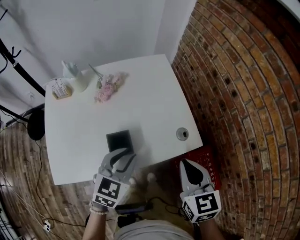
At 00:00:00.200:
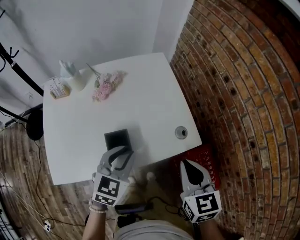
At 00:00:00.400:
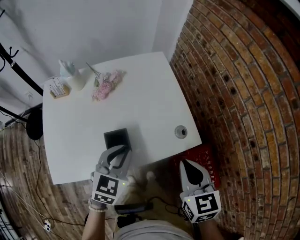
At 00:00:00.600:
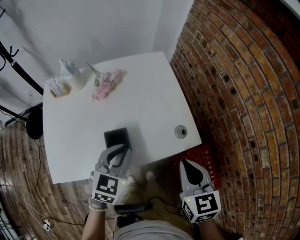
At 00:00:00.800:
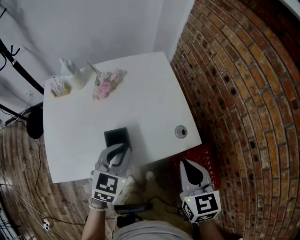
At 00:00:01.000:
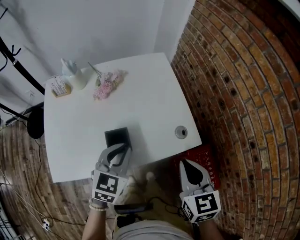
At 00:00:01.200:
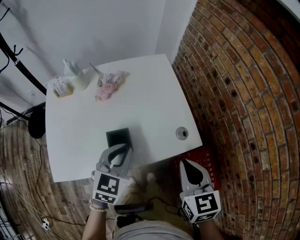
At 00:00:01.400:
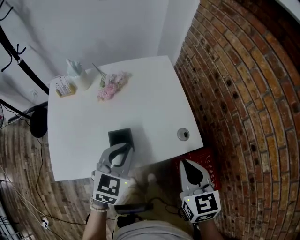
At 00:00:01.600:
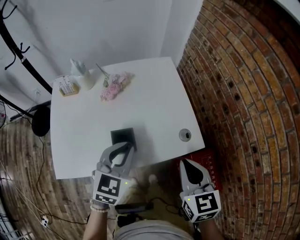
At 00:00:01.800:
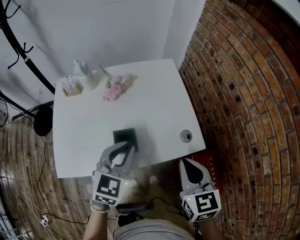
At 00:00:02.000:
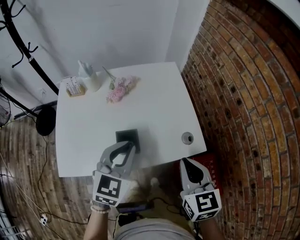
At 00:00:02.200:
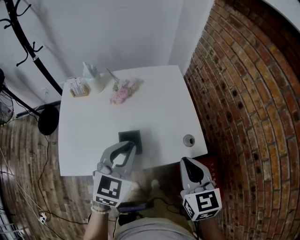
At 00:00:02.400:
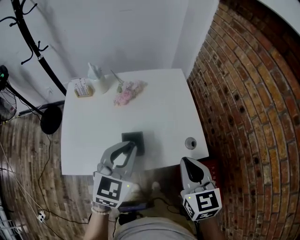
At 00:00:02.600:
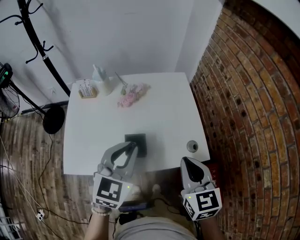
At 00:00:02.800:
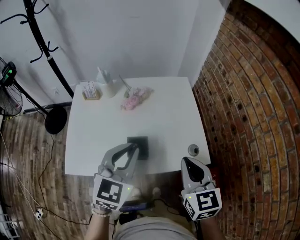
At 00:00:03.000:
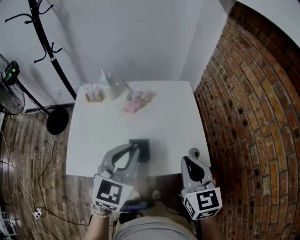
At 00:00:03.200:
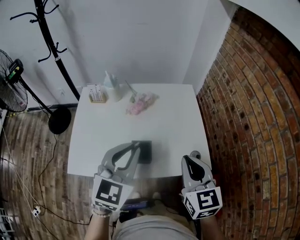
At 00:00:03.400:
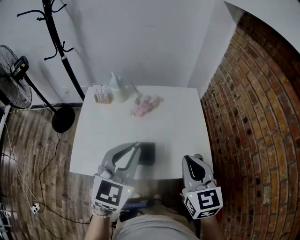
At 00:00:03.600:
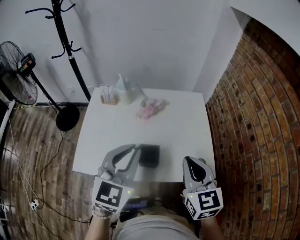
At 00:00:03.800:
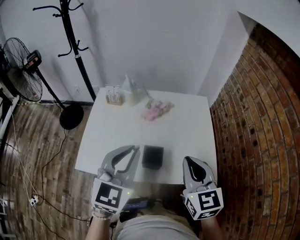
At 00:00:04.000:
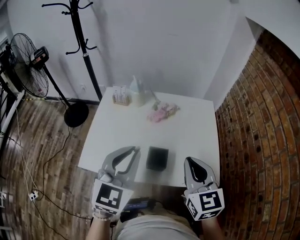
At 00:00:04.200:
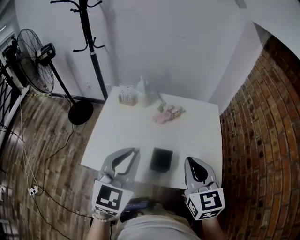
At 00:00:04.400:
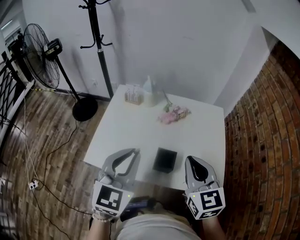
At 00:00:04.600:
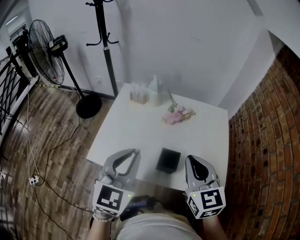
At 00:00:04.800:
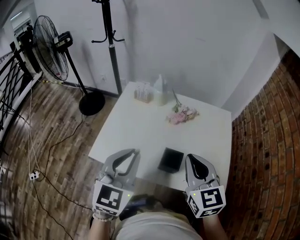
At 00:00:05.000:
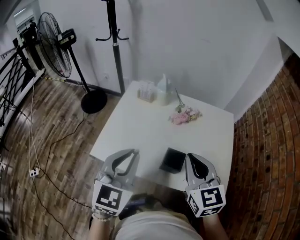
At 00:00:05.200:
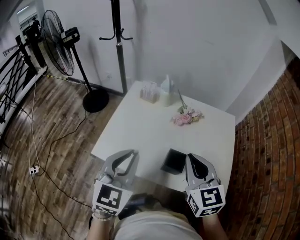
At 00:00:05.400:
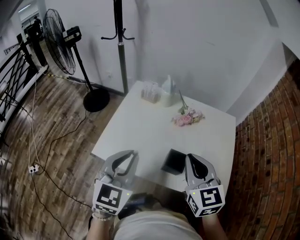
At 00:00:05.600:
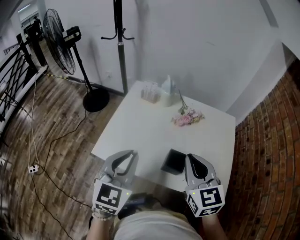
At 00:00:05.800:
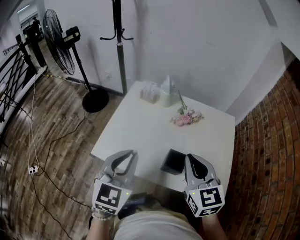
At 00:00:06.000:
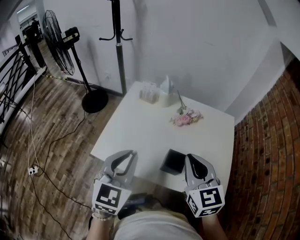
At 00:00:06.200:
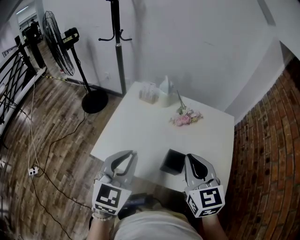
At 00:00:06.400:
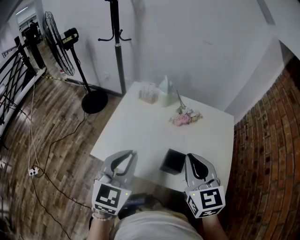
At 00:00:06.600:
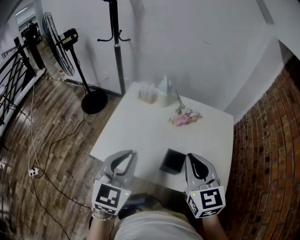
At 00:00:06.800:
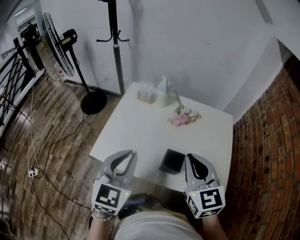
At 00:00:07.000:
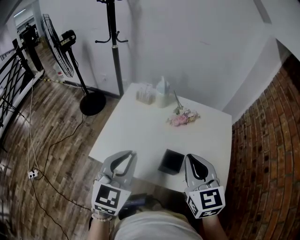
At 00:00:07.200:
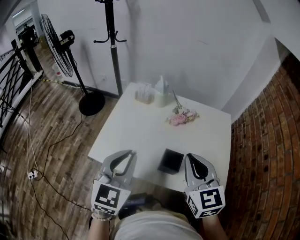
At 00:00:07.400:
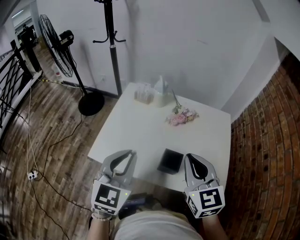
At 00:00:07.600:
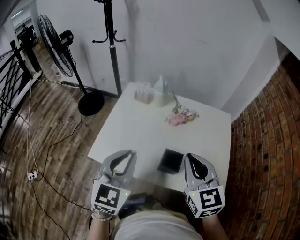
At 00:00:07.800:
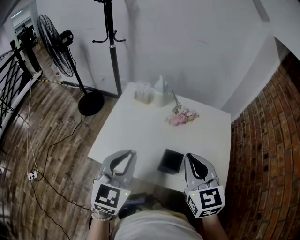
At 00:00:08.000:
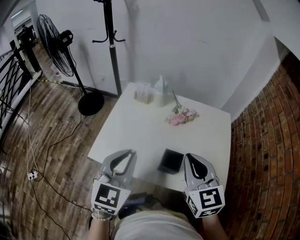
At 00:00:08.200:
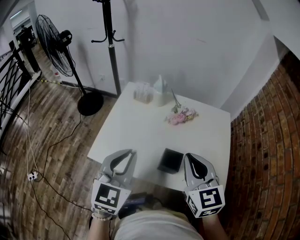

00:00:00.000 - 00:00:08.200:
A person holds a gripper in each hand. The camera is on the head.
00:00:00.000 - 00:00:01.600: The grippers make only small movements.
00:00:01.600 - 00:00:03.200: The left gripper moves upward, some 10 cm. Meanwhile the right gripper is displaced upward by approximately 5 cm.
00:00:03.200 - 00:00:05.000: The left gripper travels to the left by about 15 cm, and changes its angle by approximately 20 degrees. Meanwhile the right gripper goes about 15 cm to the left and forward, and rotates some 20 degrees.
00:00:05.000 - 00:00:06.600: The grippers make only small movements.
00:00:06.600 - 00:00:08.200: Neither gripper changes place.

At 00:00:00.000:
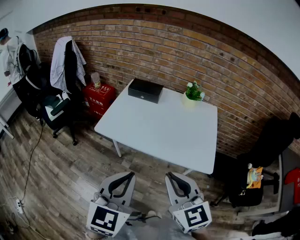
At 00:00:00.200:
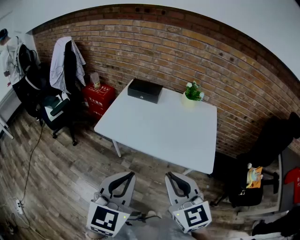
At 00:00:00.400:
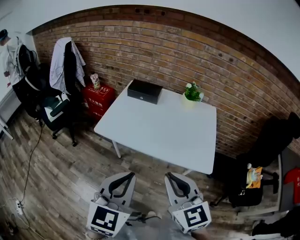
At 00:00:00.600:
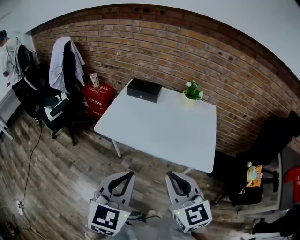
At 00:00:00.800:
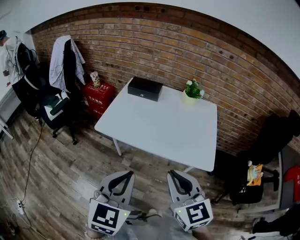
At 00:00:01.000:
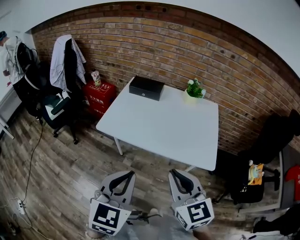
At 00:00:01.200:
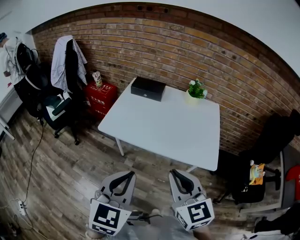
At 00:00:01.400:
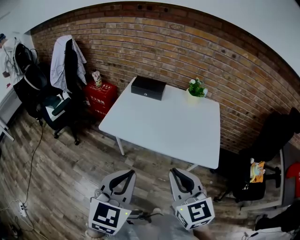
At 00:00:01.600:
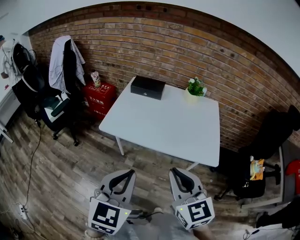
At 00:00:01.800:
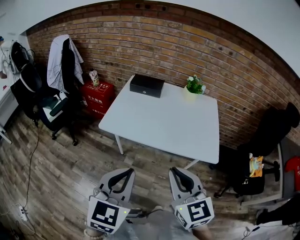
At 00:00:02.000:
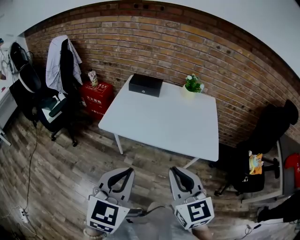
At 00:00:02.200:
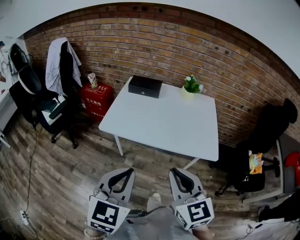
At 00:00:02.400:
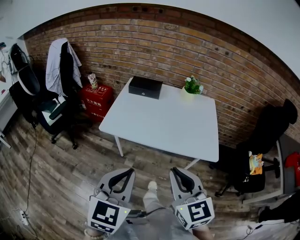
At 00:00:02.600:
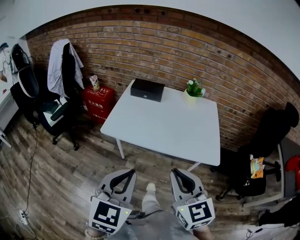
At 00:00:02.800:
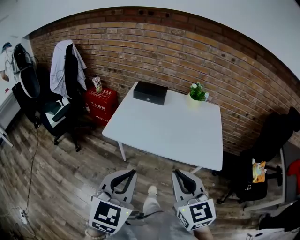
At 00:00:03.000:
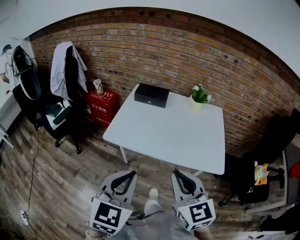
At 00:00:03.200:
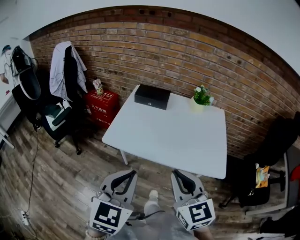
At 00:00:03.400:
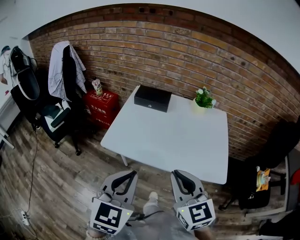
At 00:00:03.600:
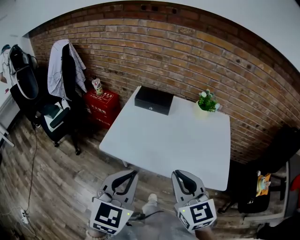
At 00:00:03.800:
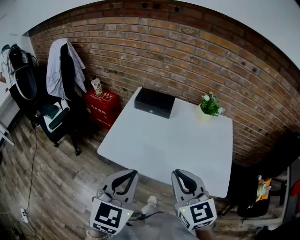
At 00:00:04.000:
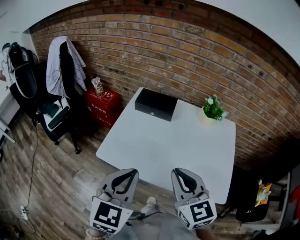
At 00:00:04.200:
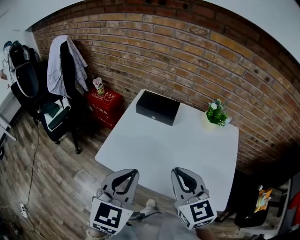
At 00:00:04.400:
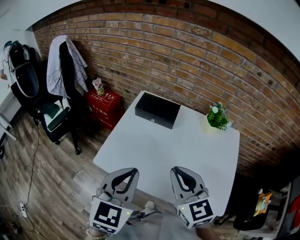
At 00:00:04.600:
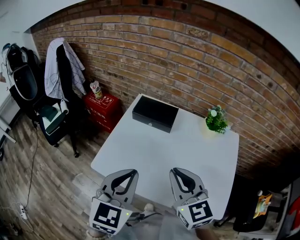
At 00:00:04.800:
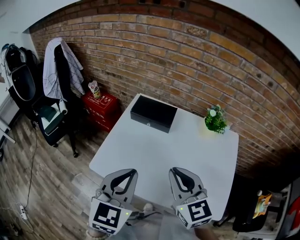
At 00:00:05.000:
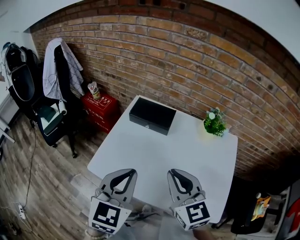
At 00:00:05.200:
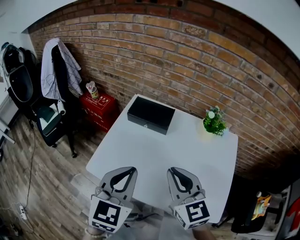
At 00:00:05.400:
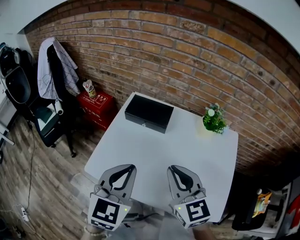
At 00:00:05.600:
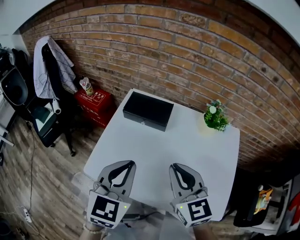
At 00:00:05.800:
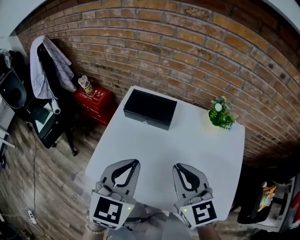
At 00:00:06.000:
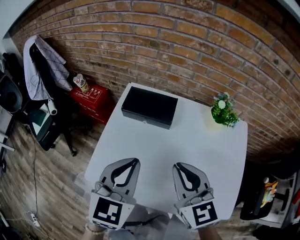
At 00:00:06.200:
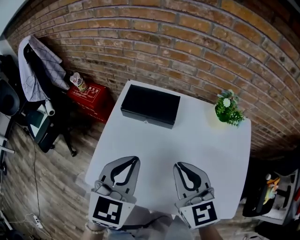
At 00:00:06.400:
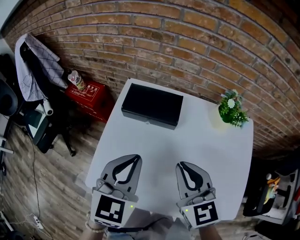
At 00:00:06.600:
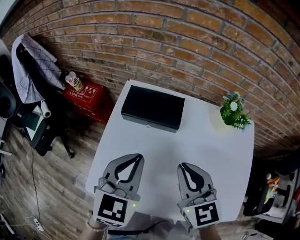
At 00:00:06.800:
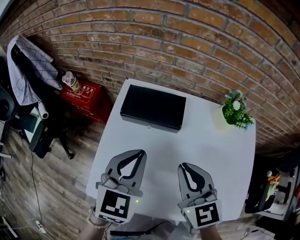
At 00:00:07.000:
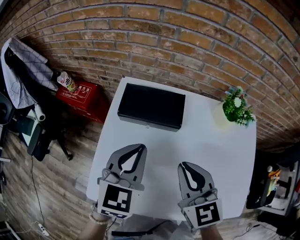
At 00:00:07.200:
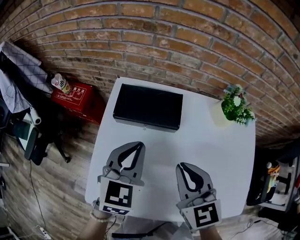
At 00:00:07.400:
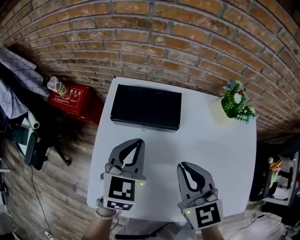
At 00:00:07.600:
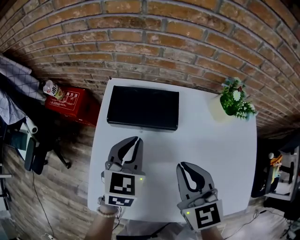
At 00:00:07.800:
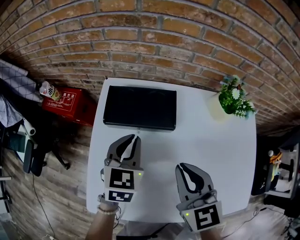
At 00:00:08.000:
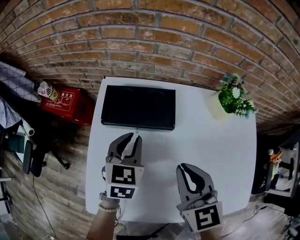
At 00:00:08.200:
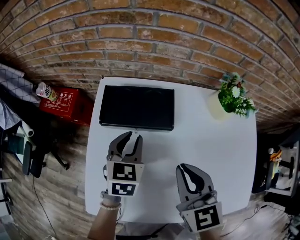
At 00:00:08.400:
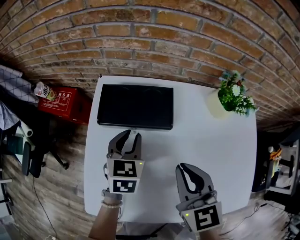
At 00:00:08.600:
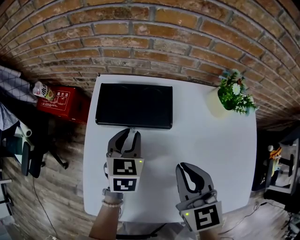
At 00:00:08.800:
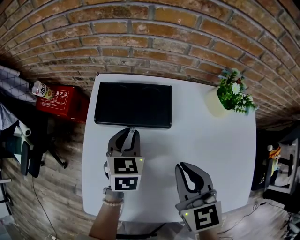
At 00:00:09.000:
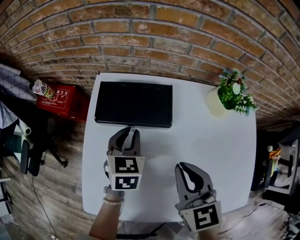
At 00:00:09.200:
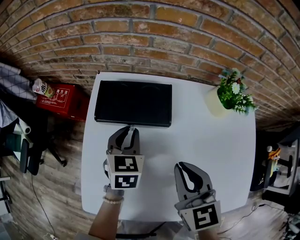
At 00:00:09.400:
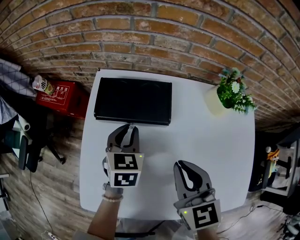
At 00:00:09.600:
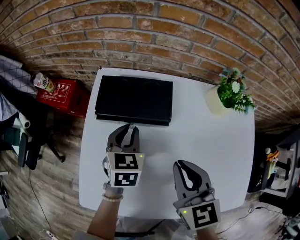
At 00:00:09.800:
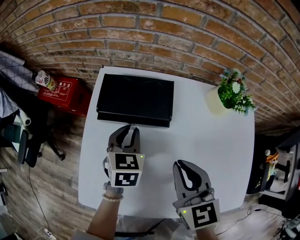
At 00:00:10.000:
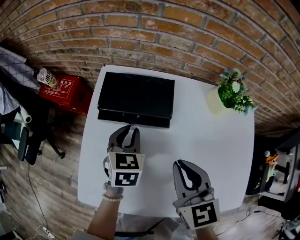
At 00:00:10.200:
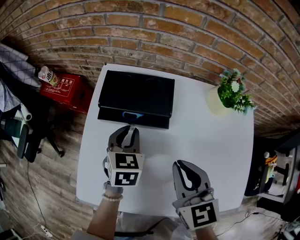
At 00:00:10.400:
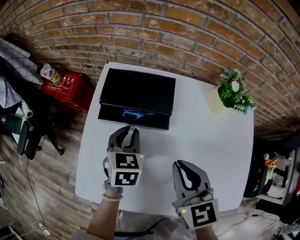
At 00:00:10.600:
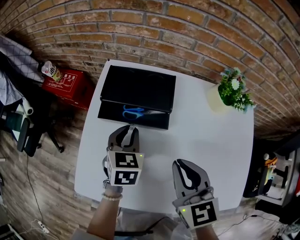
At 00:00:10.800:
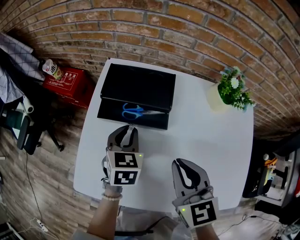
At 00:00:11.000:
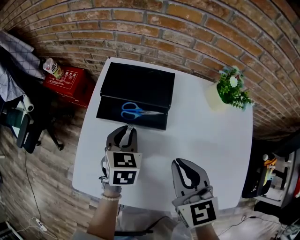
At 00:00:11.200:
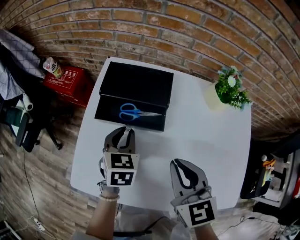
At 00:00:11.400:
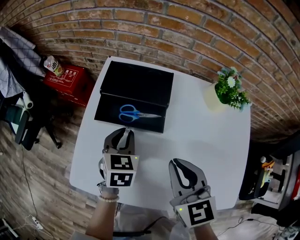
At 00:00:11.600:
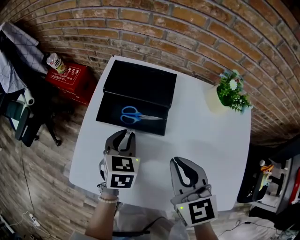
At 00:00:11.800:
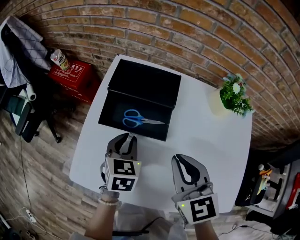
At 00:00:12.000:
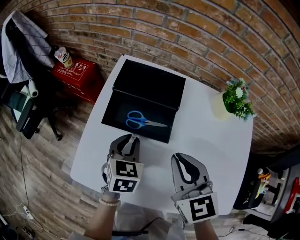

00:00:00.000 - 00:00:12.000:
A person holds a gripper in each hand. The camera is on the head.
00:00:00.000 - 00:00:01.600: The left gripper goes some 5 cm to the left.
00:00:01.600 - 00:00:03.000: The grippers stay close to where they were, moving slightly.
00:00:03.000 - 00:00:04.400: Both grippers travel together forward, about 30 cm.
00:00:04.400 - 00:00:06.000: Both grippers move forward, some 15 cm.
00:00:06.000 - 00:00:07.600: The left gripper goes roughly 25 cm forward and downward. The right gripper goes about 15 cm forward and downward.
00:00:07.600 - 00:00:09.000: The left gripper is displaced downward by some 10 cm.
00:00:09.000 - 00:00:10.400: The left gripper is displaced backward by roughly 5 cm.
00:00:10.400 - 00:00:12.000: The left gripper travels backward by about 10 cm.

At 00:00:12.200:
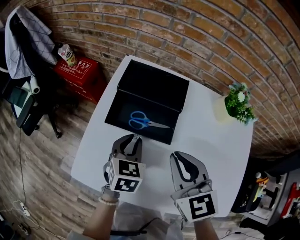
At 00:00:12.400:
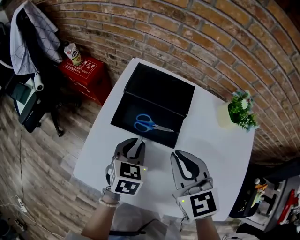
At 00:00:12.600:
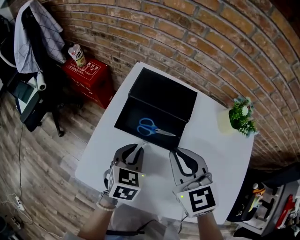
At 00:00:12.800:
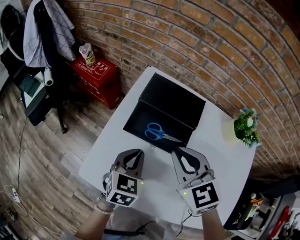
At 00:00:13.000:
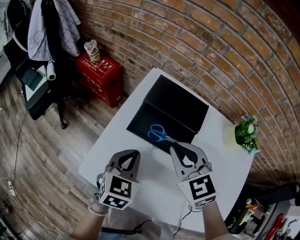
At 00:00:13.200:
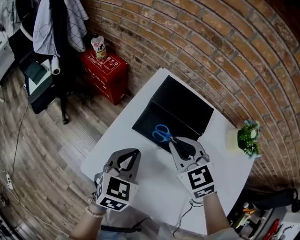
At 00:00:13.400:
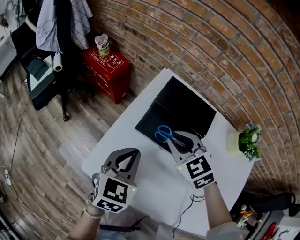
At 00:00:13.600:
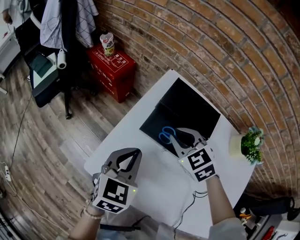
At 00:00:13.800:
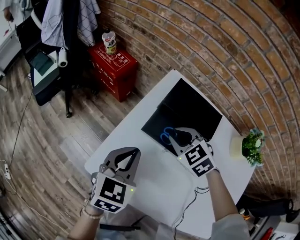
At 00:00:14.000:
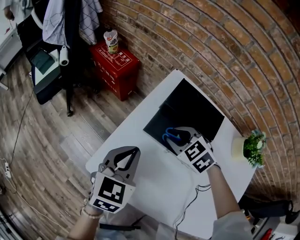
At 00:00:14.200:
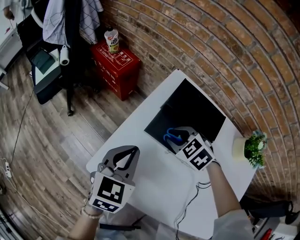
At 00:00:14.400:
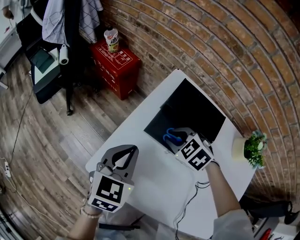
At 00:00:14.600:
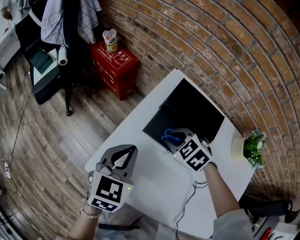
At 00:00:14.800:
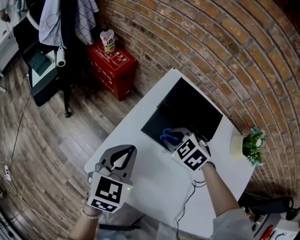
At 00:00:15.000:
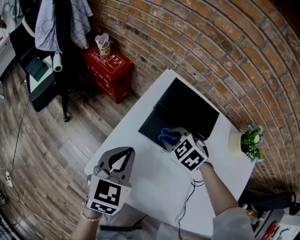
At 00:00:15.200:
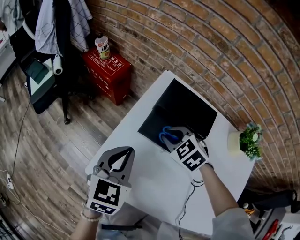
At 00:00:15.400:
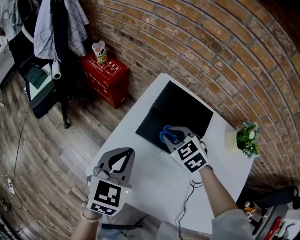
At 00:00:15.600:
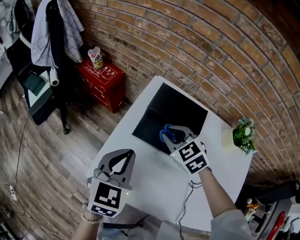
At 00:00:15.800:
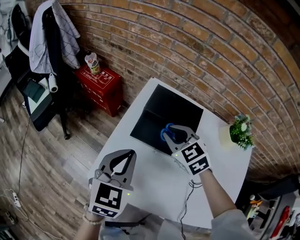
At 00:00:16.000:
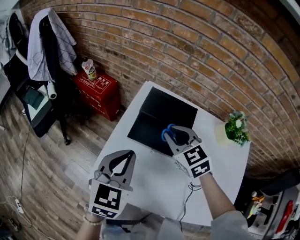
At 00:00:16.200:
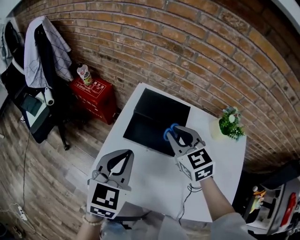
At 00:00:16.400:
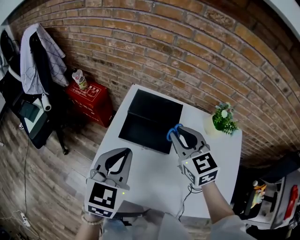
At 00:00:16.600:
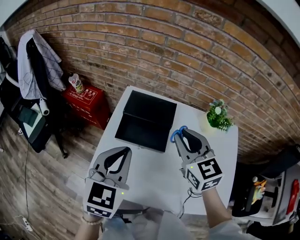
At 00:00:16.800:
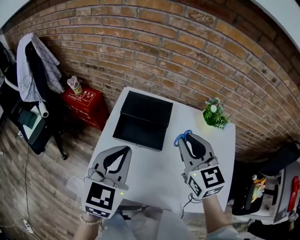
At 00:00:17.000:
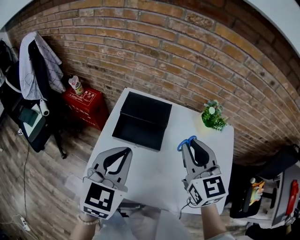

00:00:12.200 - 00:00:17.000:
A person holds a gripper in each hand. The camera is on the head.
00:00:12.200 - 00:00:13.800: The right gripper heads forward, to the left and downward, covering some 20 cm, and swivels about 50 degrees, while the left gripper moves to the left and upward, approximately 15 cm.
00:00:13.800 - 00:00:15.400: The grippers stay close to where they were, moving slightly.
00:00:15.400 - 00:00:17.000: The left gripper heads upward, to the right and backward, covering about 20 cm, and swivels approximately 20 degrees; the right gripper shifts some 35 cm upward, to the right and backward, and tilts its fingers about 40 degrees upward.
